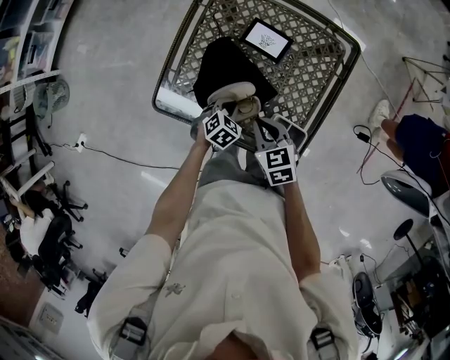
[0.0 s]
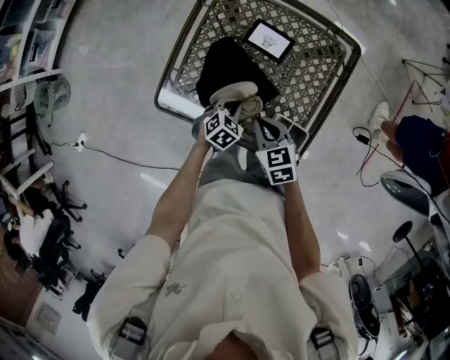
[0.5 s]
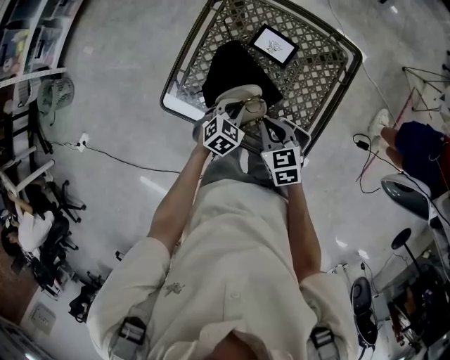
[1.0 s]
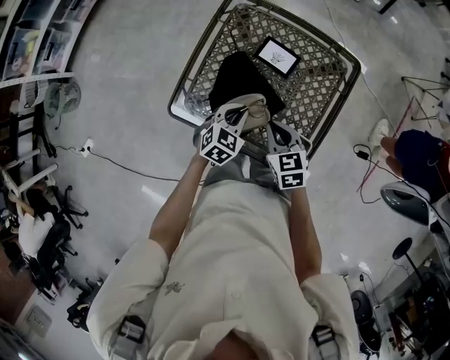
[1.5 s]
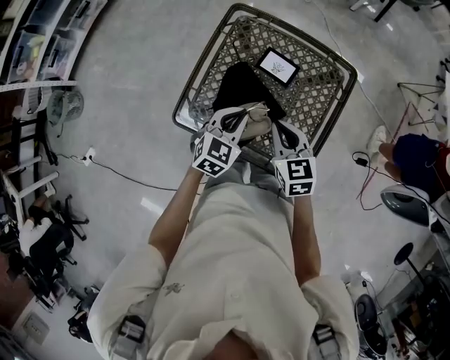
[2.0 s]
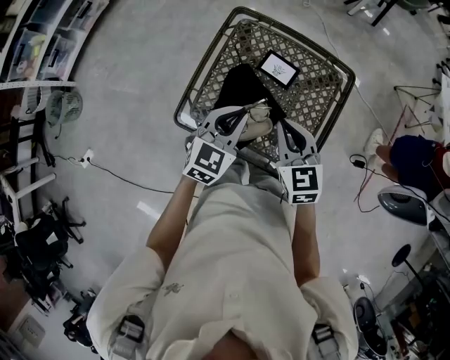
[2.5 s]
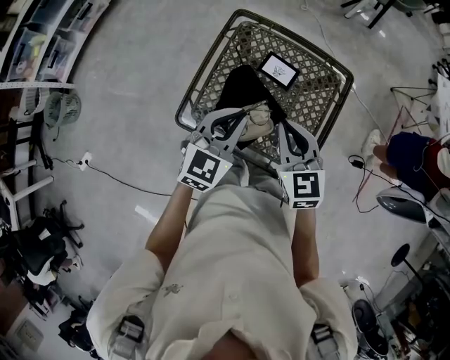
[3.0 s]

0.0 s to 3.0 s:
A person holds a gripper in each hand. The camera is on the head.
0.0 to 1.5 s: The left gripper travels upward by some 15 cm.
1.5 to 3.0 s: The two grippers go approximately 20 cm upward. The right gripper rotates roughly 20 degrees, while the left gripper swivels approximately 20 degrees.

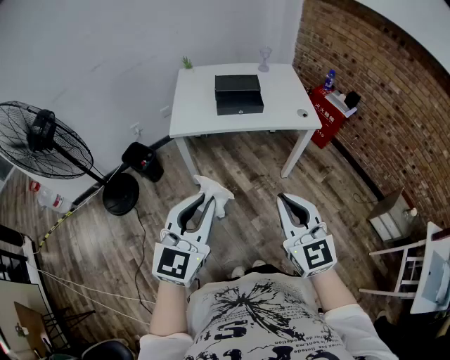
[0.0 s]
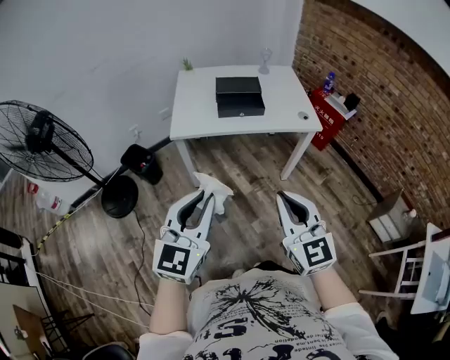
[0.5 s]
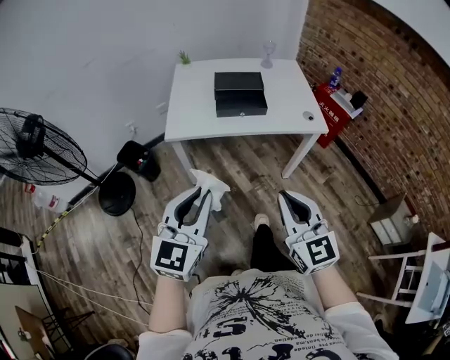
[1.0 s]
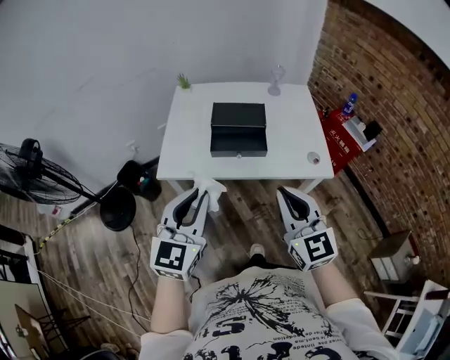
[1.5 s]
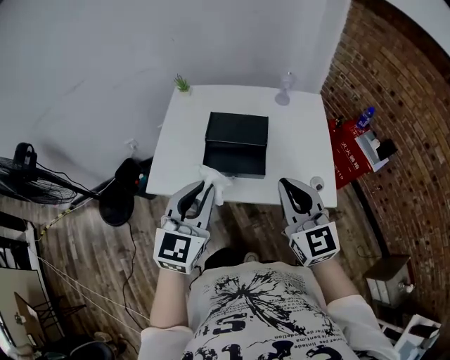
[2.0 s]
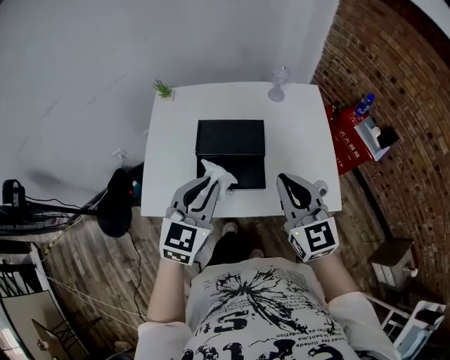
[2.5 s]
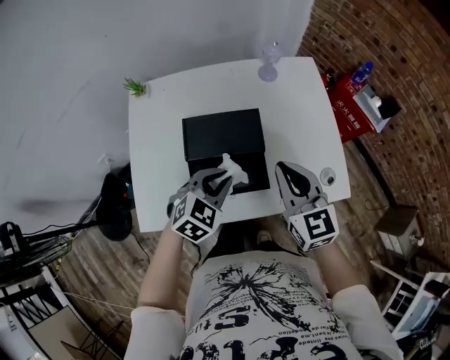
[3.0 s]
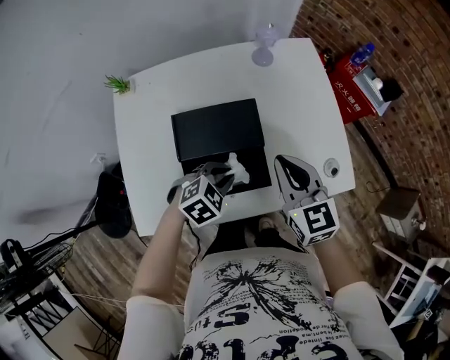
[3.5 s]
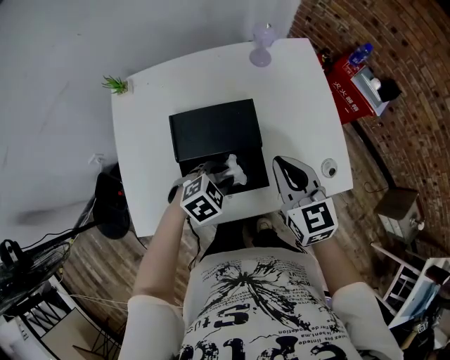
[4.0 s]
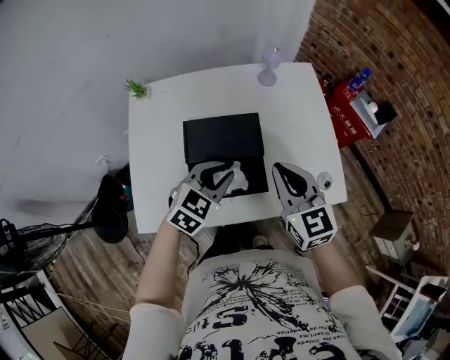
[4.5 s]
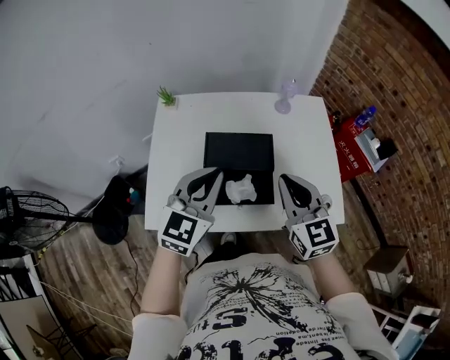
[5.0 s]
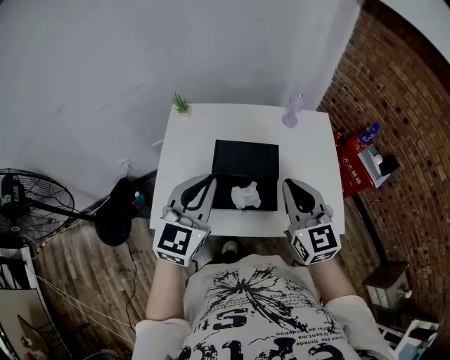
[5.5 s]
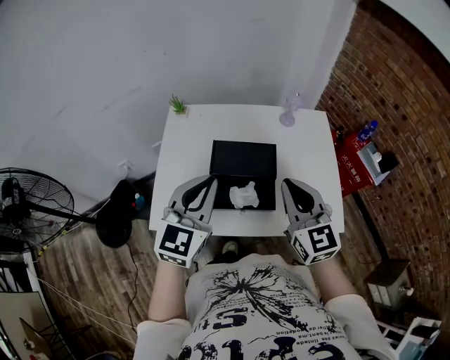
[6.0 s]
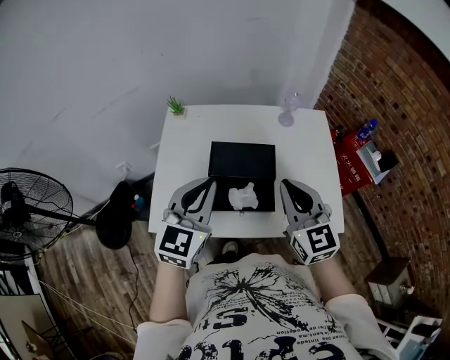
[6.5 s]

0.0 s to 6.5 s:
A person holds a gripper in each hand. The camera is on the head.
0.0 to 2.0 s: Both grippers are carried forward, approximately 50 cm.
2.0 to 4.5 s: The right gripper ends up some 25 cm from where it was. Meanwhile the left gripper changes place by roughly 30 cm, and changes its angle by some 40 degrees.
4.5 to 6.5 s: The right gripper shifts approximately 10 cm upward. Meanwhile the left gripper moves upward and to the left, about 20 cm, and rotates approximately 40 degrees.

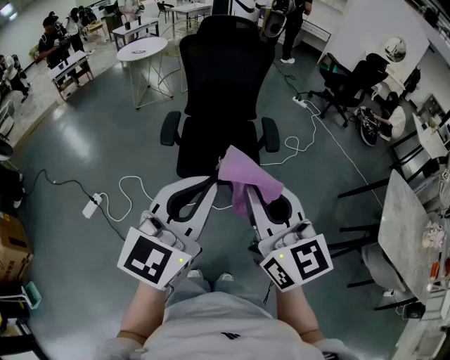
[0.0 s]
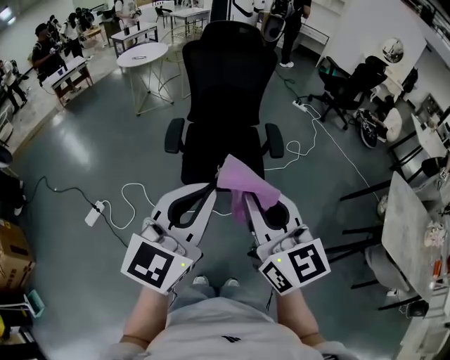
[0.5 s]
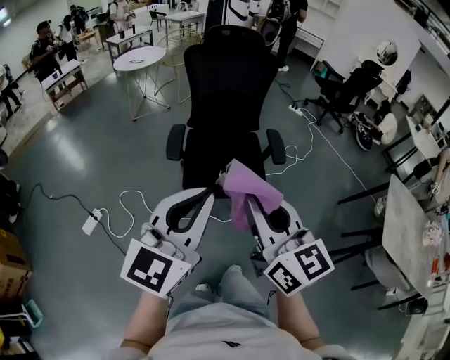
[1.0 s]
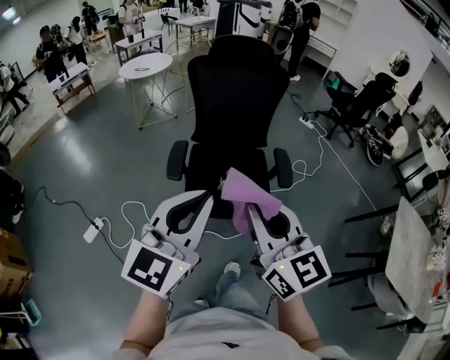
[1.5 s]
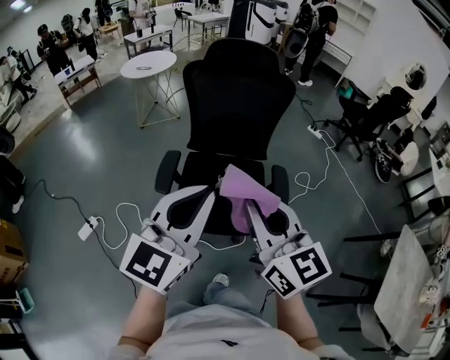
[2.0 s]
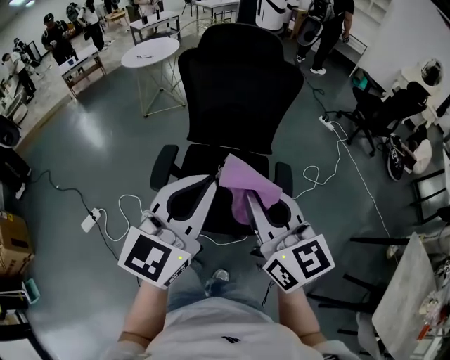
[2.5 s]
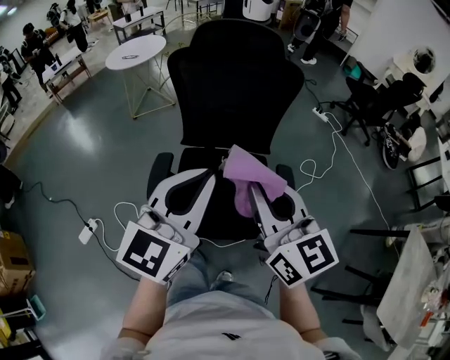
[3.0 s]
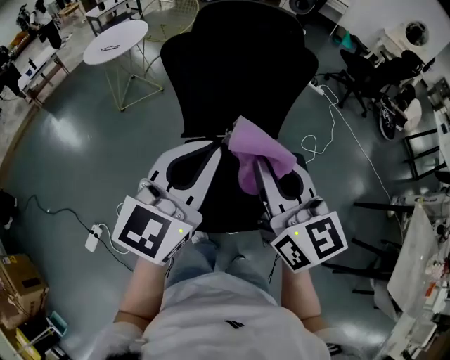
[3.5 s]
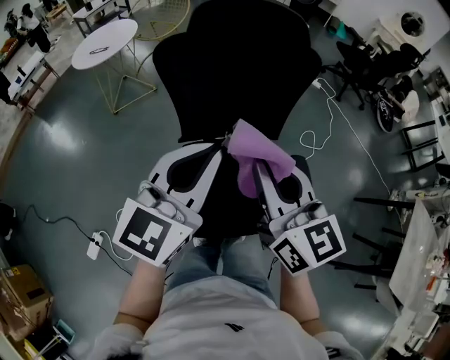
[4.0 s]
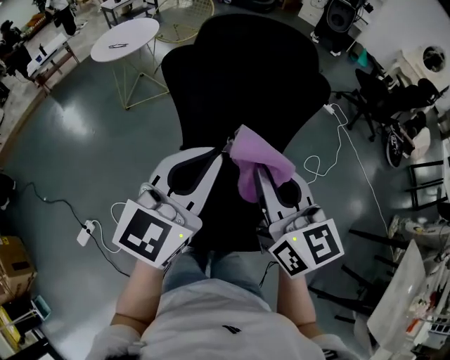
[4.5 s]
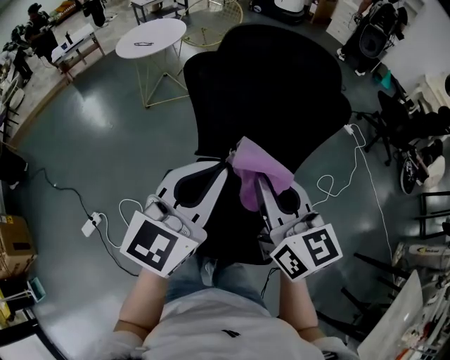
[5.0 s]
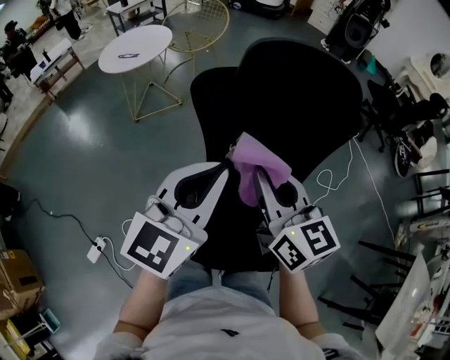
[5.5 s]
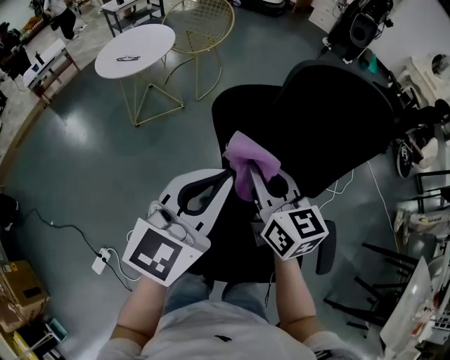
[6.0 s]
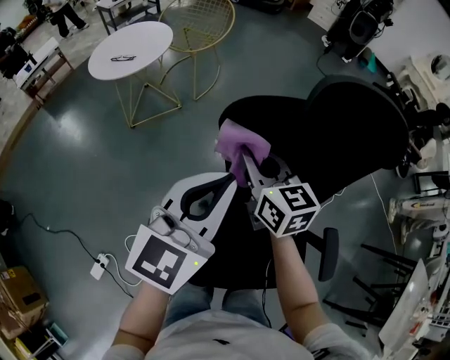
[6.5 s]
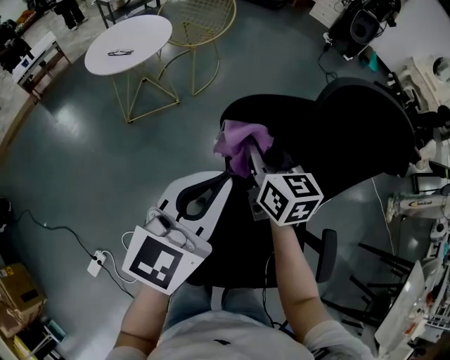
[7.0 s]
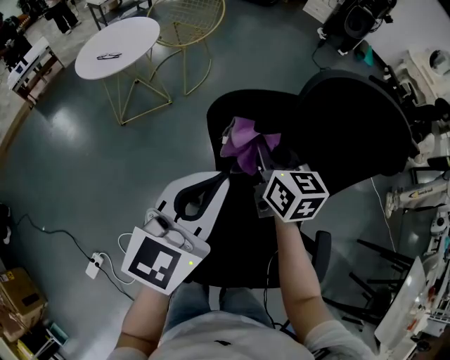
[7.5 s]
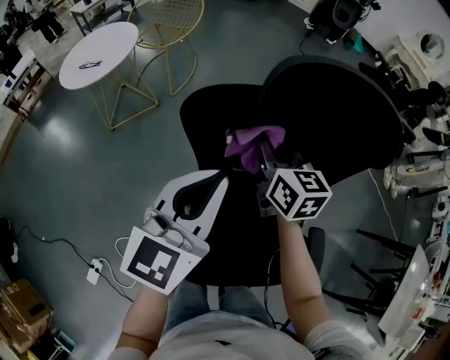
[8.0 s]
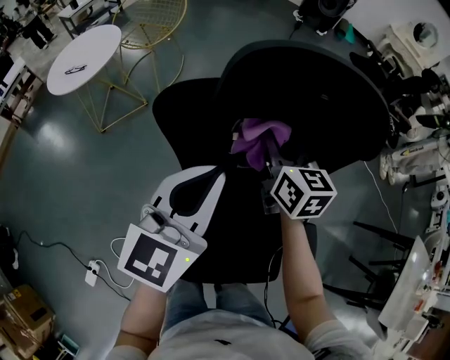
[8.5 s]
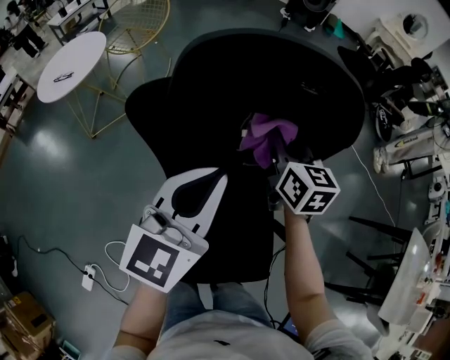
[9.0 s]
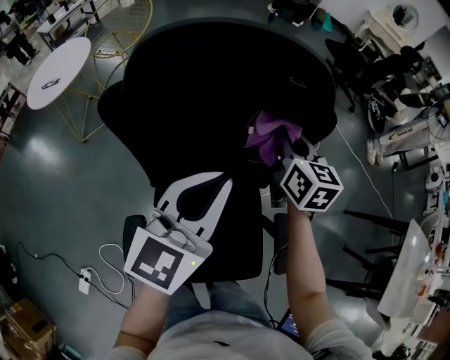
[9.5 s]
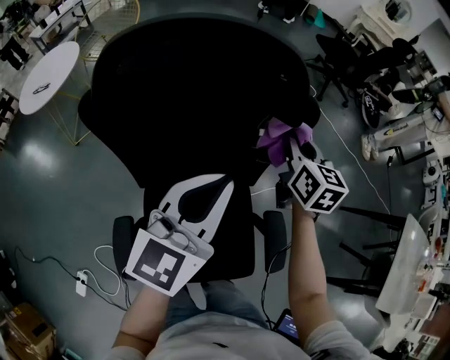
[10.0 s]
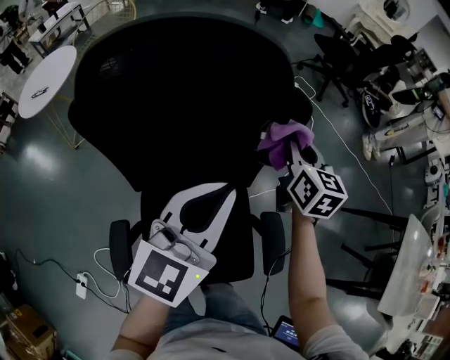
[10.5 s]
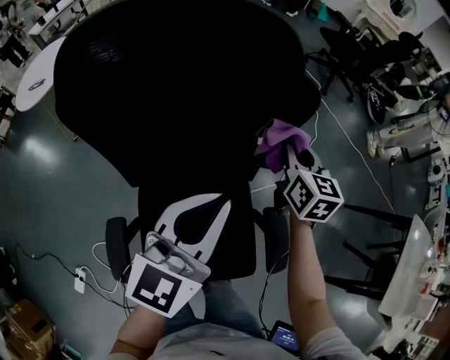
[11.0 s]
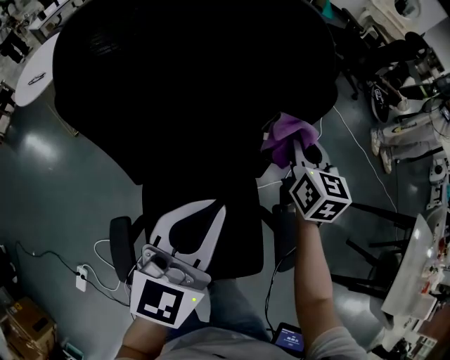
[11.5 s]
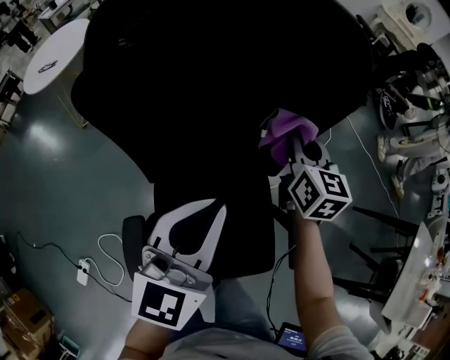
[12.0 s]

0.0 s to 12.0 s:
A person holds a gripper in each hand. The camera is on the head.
0.0 to 2.0 s: The two grippers go roughly 20 cm forward.
2.0 to 4.0 s: Both grippers move forward, approximately 25 cm.
4.0 to 6.0 s: The left gripper is displaced forward and to the left by about 20 cm; the right gripper shifts approximately 25 cm forward, to the left and downward.
6.0 to 8.0 s: The right gripper goes roughly 15 cm forward and to the right; the left gripper is displaced forward by roughly 5 cm.
8.0 to 10.0 s: The two grippers go some 25 cm to the right. The right gripper swivels some 20 degrees.
10.0 to 12.0 s: The right gripper moves to the left, about 5 cm, while the left gripper travels to the left and backward by about 5 cm.

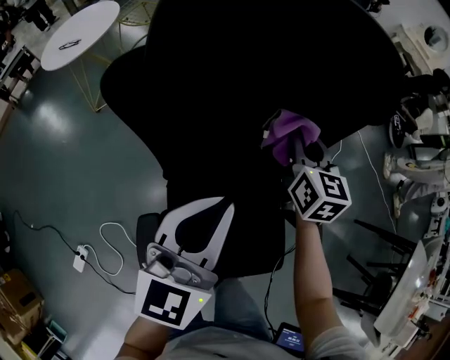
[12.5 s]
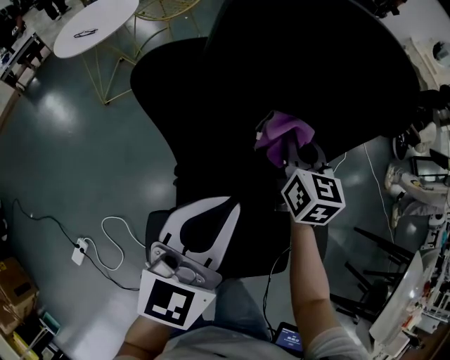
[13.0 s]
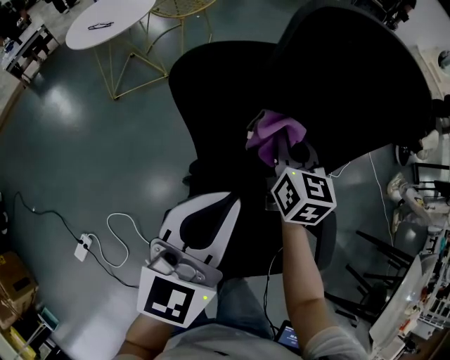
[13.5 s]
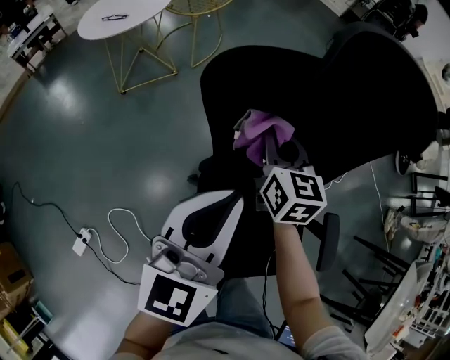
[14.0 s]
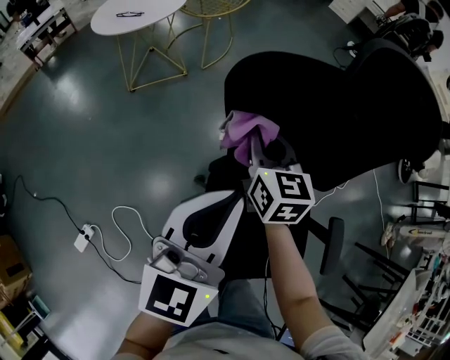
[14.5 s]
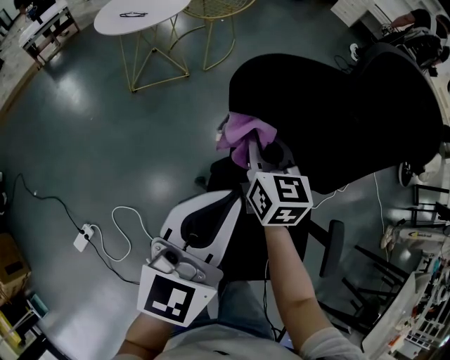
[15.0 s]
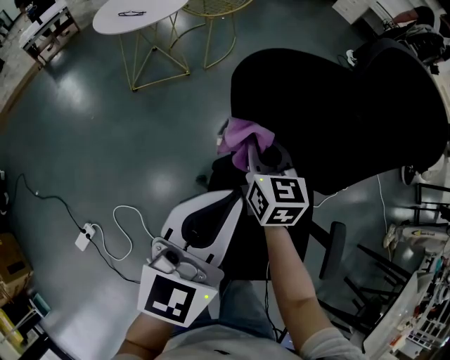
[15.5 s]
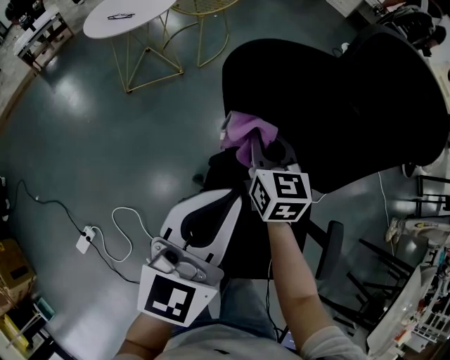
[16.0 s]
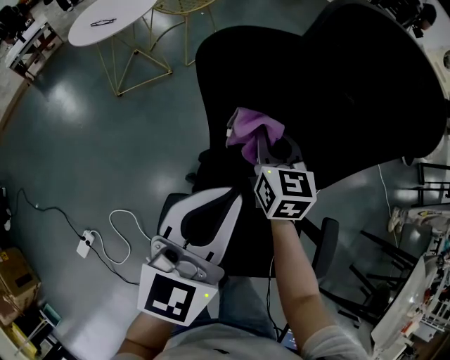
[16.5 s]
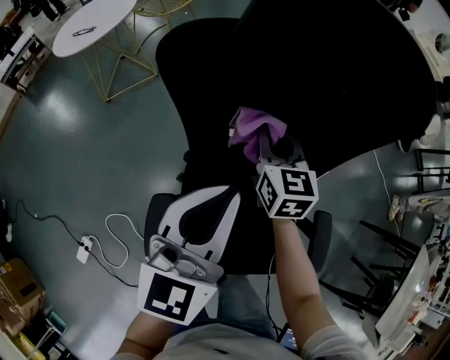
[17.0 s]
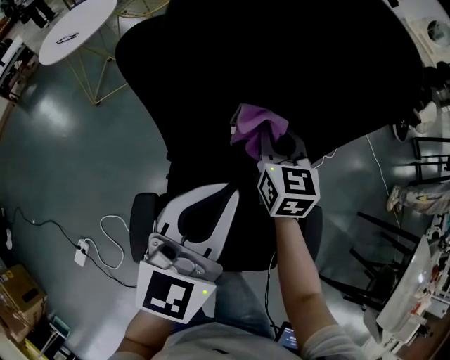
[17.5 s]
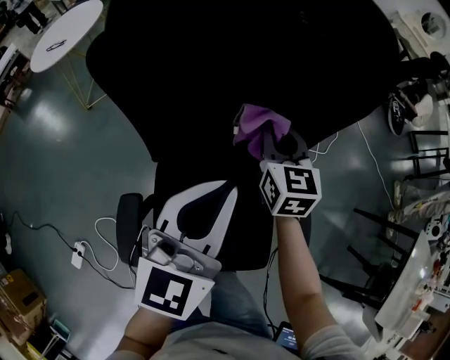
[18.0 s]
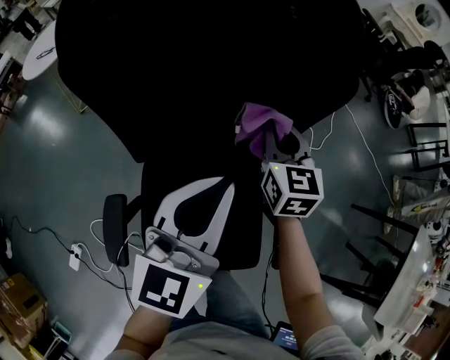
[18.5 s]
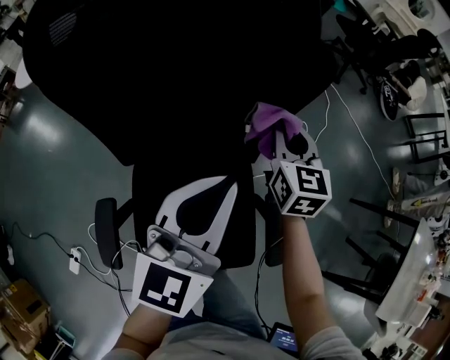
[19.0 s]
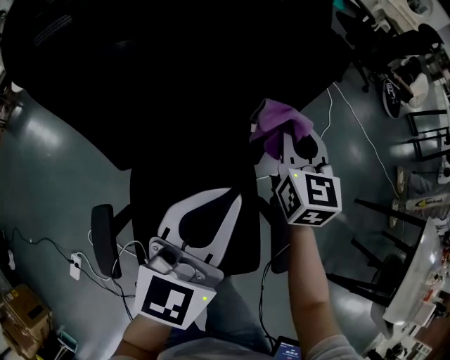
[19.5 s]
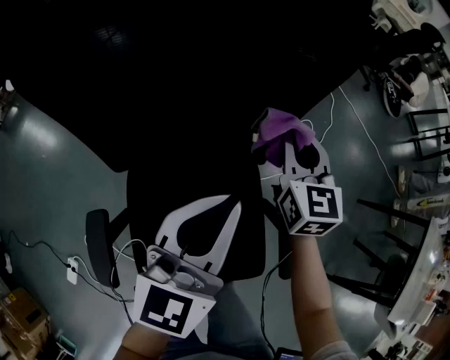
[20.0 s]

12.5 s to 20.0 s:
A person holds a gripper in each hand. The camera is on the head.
12.5 to 14.5 s: The left gripper goes roughly 15 cm to the left, while the right gripper moves to the left, some 25 cm.
14.5 to 16.5 s: Both grippers travel together to the right, roughly 10 cm.
16.5 to 18.0 s: The grippers both shift to the right by about 15 cm.
18.0 to 20.0 s: The left gripper goes approximately 10 cm to the right and downward. Meanwhile the right gripper shifts some 10 cm to the right.
